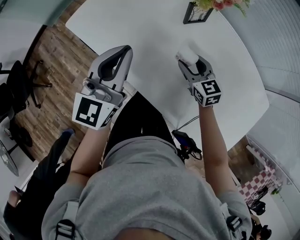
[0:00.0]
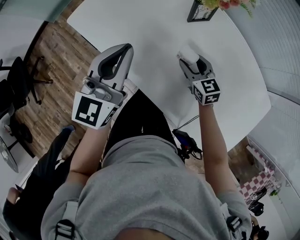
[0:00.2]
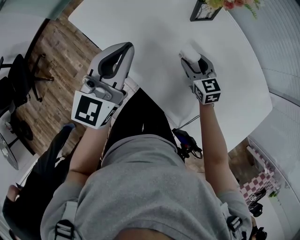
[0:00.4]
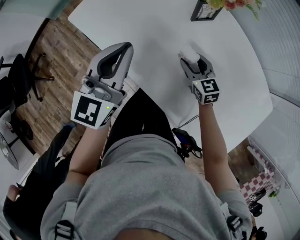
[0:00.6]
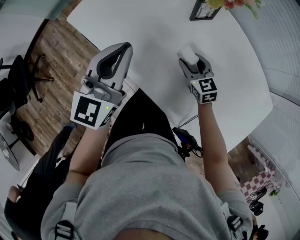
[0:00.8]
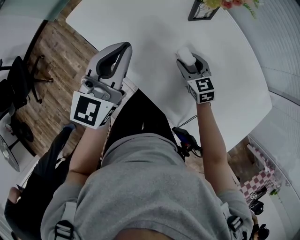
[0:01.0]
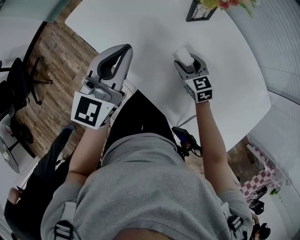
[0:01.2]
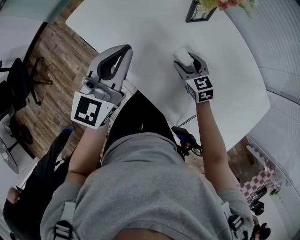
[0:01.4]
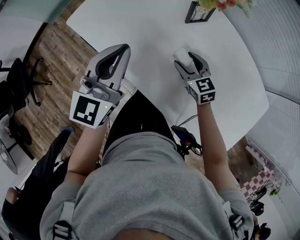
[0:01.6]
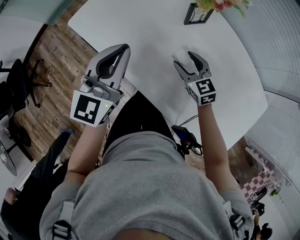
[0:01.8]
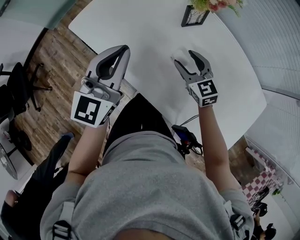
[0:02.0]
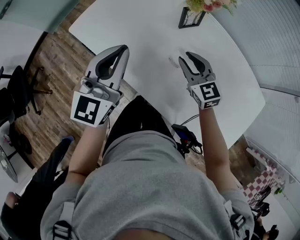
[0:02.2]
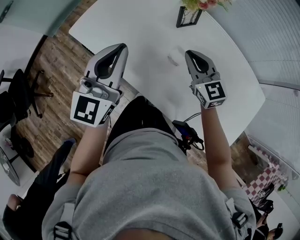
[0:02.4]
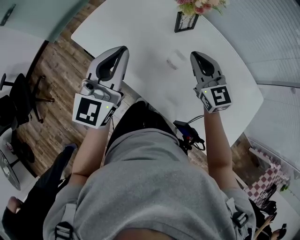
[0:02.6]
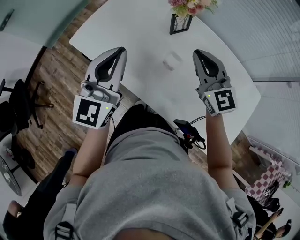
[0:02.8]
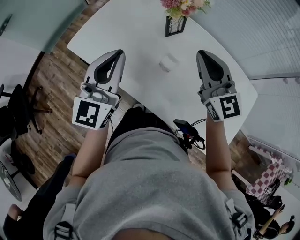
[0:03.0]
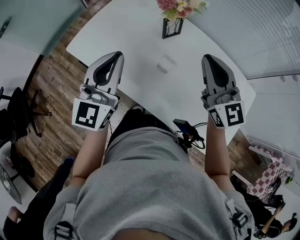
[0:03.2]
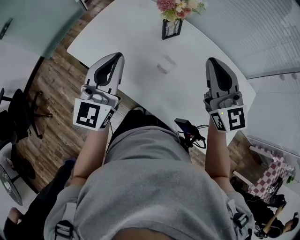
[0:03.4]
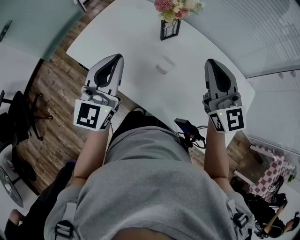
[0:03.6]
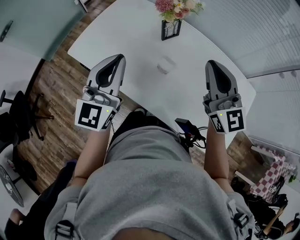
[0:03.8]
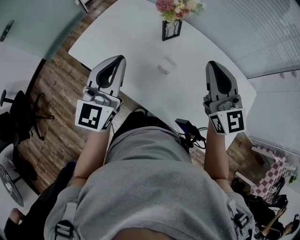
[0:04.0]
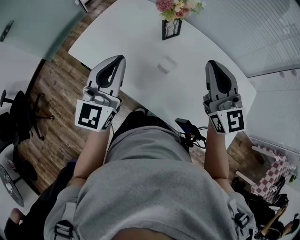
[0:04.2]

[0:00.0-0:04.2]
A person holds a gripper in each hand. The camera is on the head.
0:00.0 to 0:01.4: The grippers make only small movements.
0:01.4 to 0:02.8: The left gripper travels upward by some 10 cm, while the right gripper shifts roughly 25 cm upward, rotates some 30 degrees, and closes.
0:02.8 to 0:04.2: The right gripper moves upward and backward, roughly 10 cm.

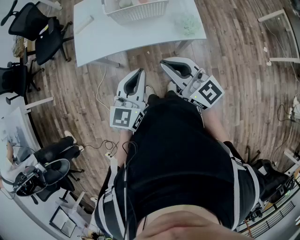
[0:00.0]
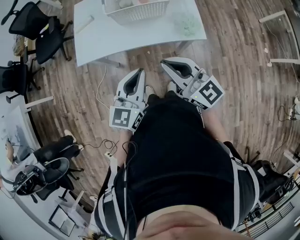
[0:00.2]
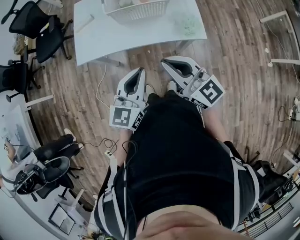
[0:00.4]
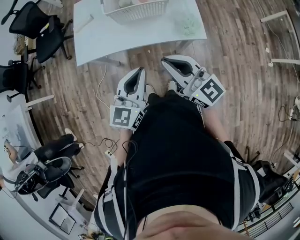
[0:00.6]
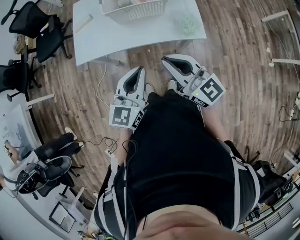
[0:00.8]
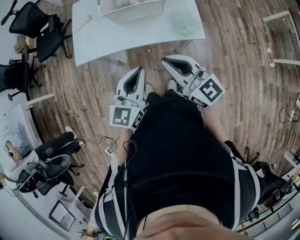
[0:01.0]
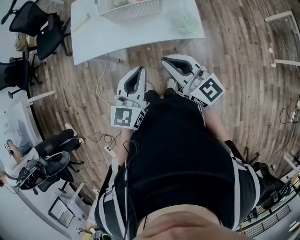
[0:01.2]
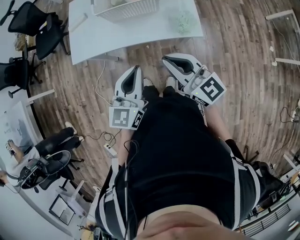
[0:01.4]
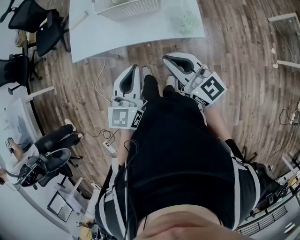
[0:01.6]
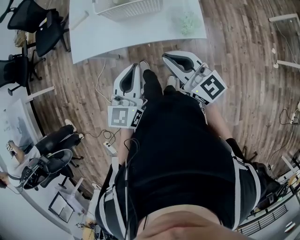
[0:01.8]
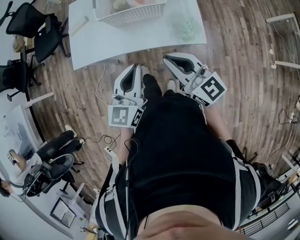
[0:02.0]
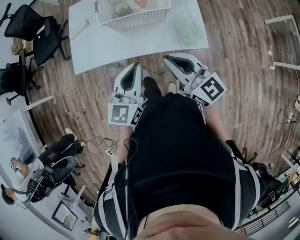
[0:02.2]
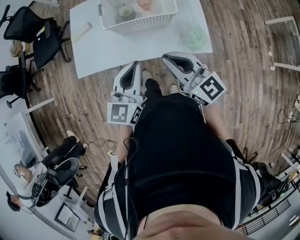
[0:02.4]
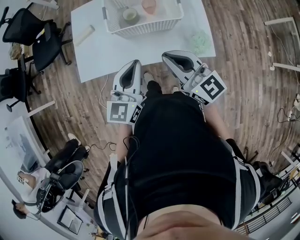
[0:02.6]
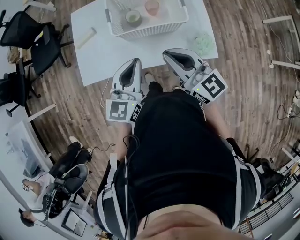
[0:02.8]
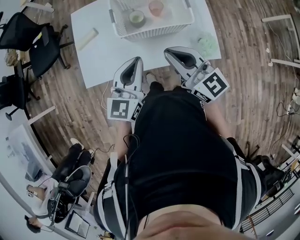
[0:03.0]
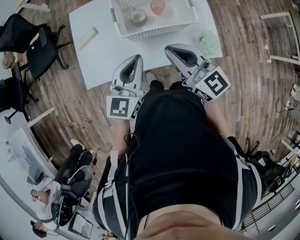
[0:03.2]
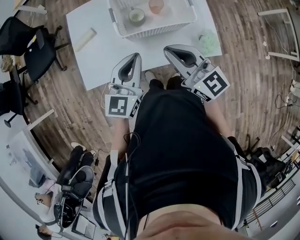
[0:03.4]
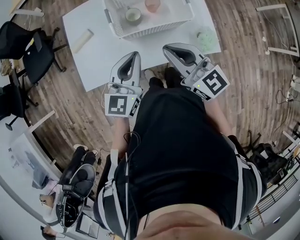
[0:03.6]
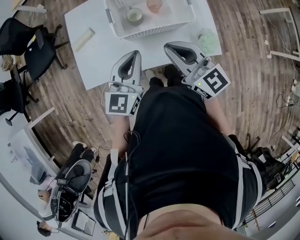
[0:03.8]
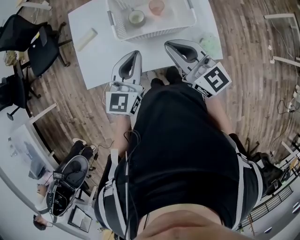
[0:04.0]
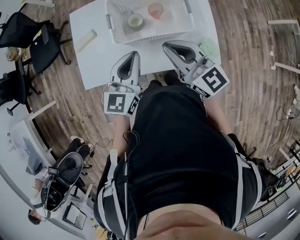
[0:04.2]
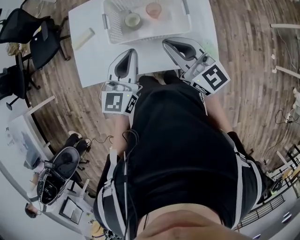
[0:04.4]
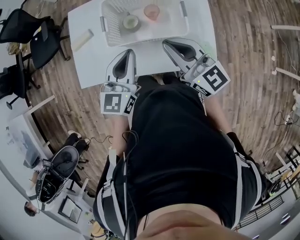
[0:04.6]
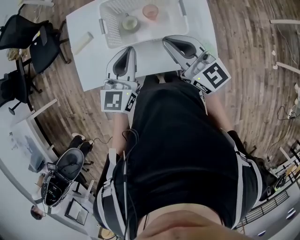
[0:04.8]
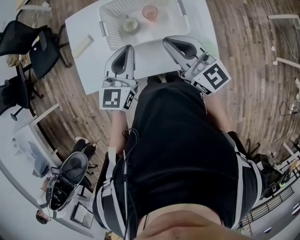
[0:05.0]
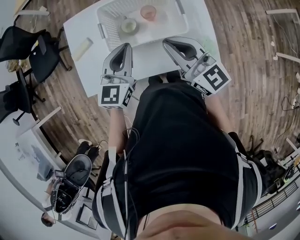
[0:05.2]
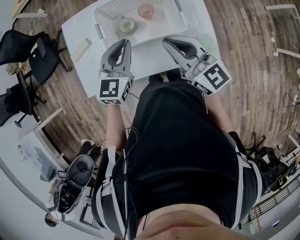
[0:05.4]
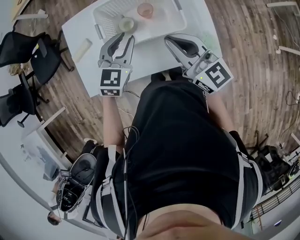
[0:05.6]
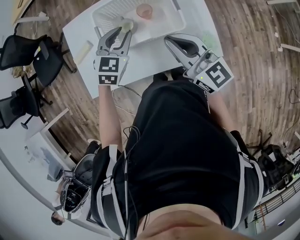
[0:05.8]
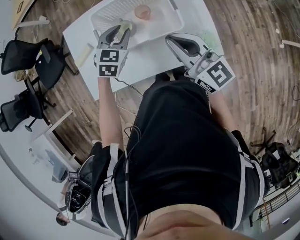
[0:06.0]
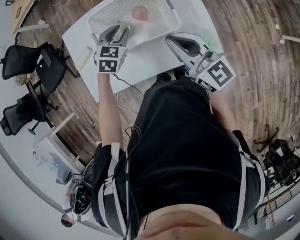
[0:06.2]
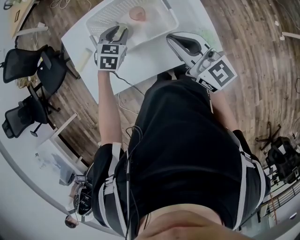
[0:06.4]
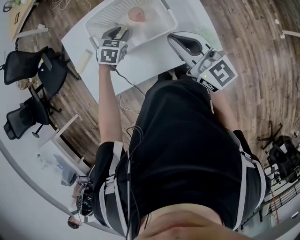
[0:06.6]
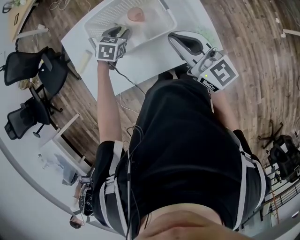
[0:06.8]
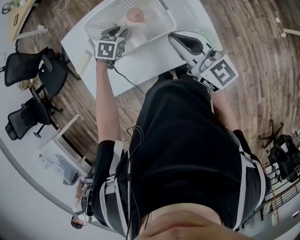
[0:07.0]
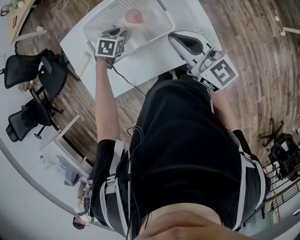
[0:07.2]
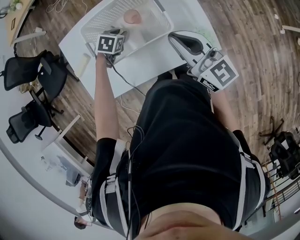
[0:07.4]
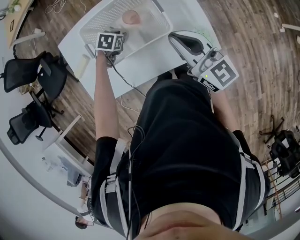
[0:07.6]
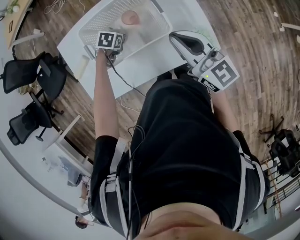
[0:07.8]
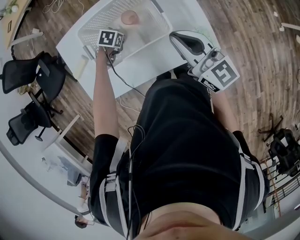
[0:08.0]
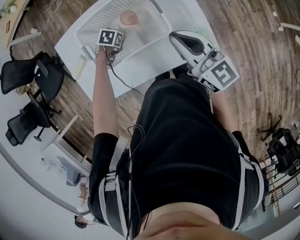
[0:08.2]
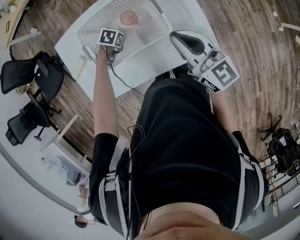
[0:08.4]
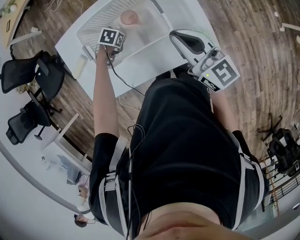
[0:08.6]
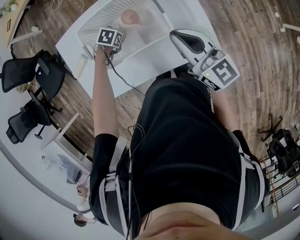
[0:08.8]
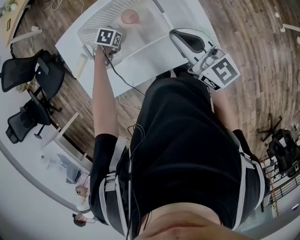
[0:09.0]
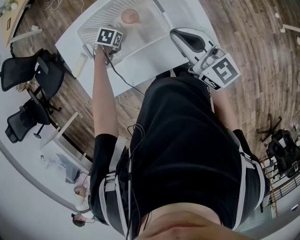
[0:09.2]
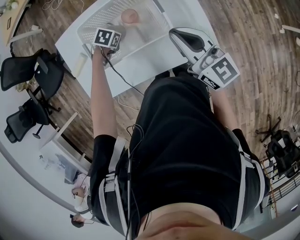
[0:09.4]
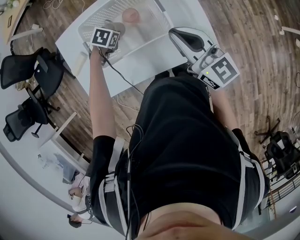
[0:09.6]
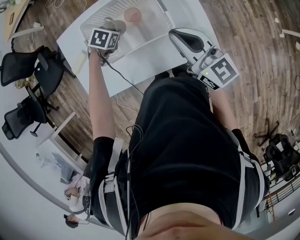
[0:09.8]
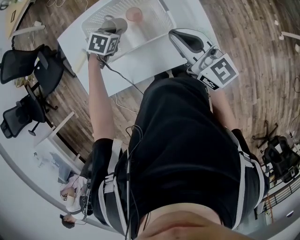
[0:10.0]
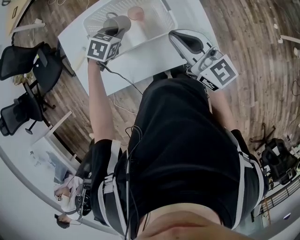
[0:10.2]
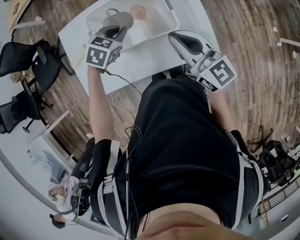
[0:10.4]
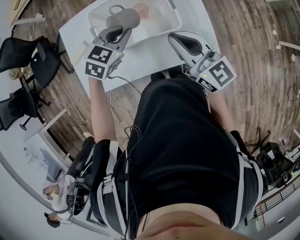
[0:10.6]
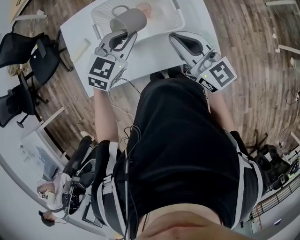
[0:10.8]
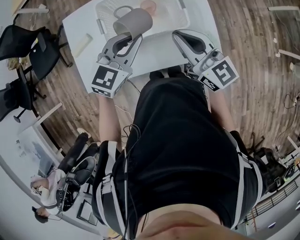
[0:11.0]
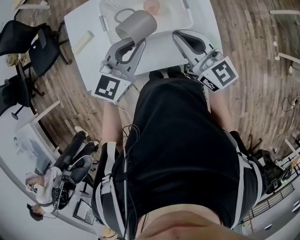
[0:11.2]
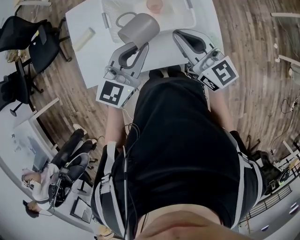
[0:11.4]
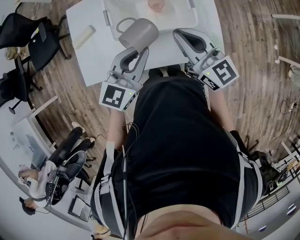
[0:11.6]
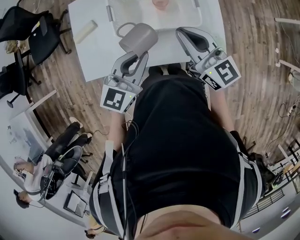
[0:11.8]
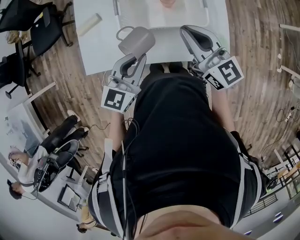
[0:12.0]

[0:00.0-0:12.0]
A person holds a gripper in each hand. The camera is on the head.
0:00.0 to 0:01.6: Both grippers move to the right, roughly 10 cm.
0:01.6 to 0:03.0: The two grippers go approximately 25 cm forward and to the left.
0:03.0 to 0:04.4: The two grippers go roughly 10 cm forward and to the right.
0:04.4 to 0:06.0: The left gripper heads forward and downward, covering roughly 15 cm, tips its fingers downward by about 30 degrees, and opens.
0:06.0 to 0:07.6: The right gripper goes some 5 cm to the right, while the left gripper moves downward, some 15 cm, and tilts its fingers some 30 degrees downward.
0:07.6 to 0:09.0: The left gripper closes its fingers.
0:09.0 to 0:10.4: The right gripper ends up some 5 cm from where it was, while the left gripper heads upward, covering some 20 cm, and swivels approximately 30 degrees.
0:10.4 to 0:12.0: The left gripper shifts about 20 cm backward and upward, and tilts its fingers some 40 degrees upward, while the right gripper is displaced to the left by approximately 10 cm.

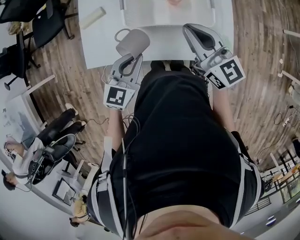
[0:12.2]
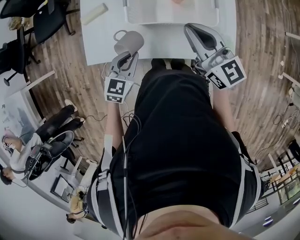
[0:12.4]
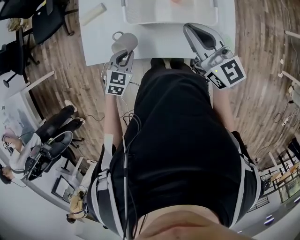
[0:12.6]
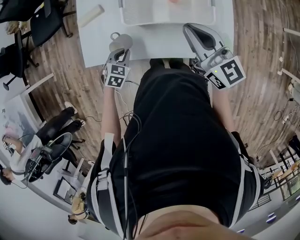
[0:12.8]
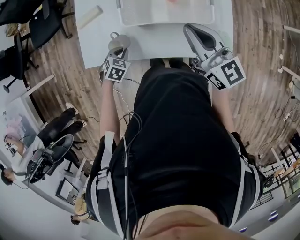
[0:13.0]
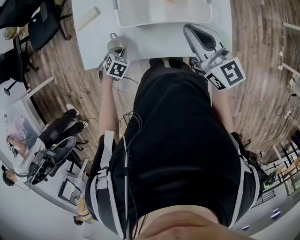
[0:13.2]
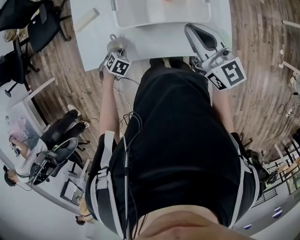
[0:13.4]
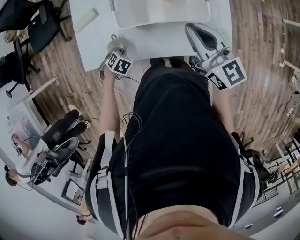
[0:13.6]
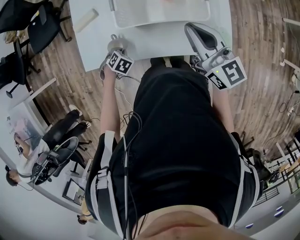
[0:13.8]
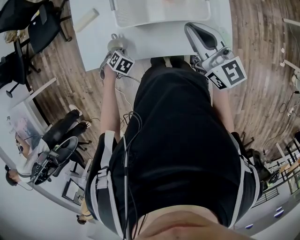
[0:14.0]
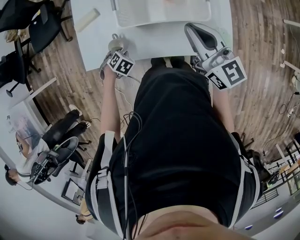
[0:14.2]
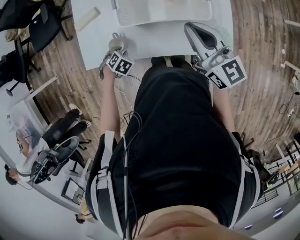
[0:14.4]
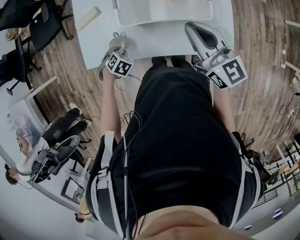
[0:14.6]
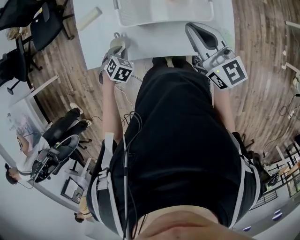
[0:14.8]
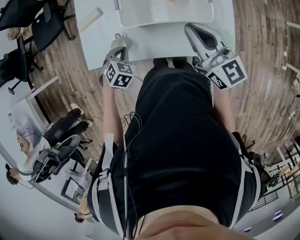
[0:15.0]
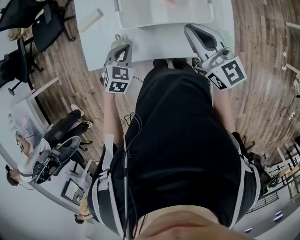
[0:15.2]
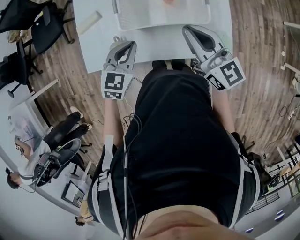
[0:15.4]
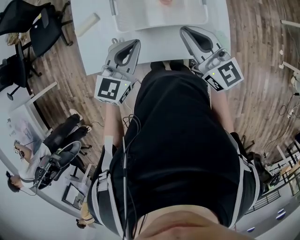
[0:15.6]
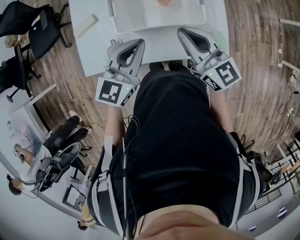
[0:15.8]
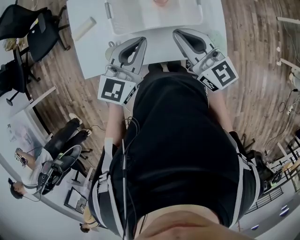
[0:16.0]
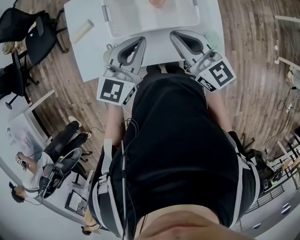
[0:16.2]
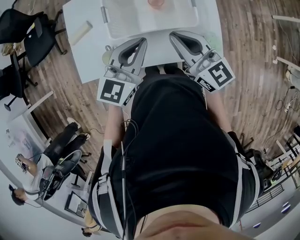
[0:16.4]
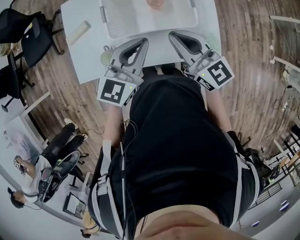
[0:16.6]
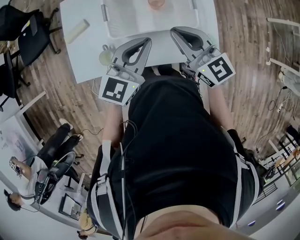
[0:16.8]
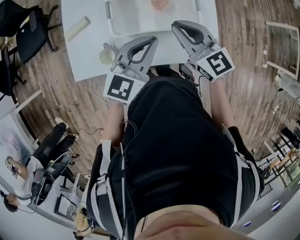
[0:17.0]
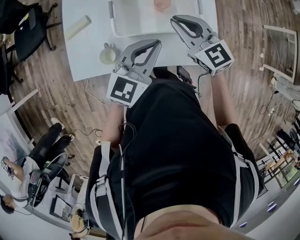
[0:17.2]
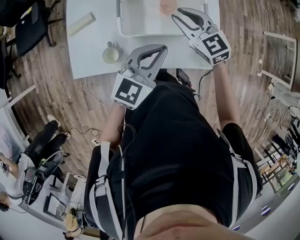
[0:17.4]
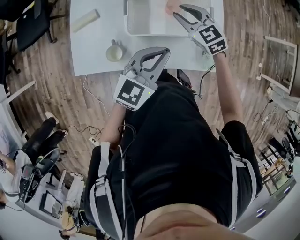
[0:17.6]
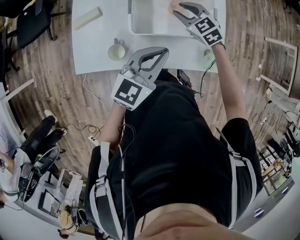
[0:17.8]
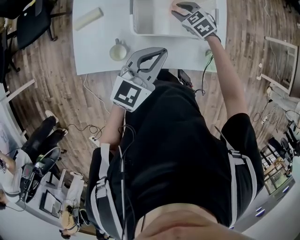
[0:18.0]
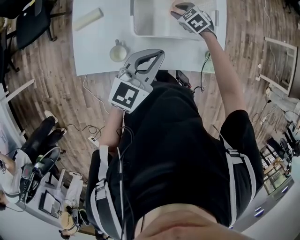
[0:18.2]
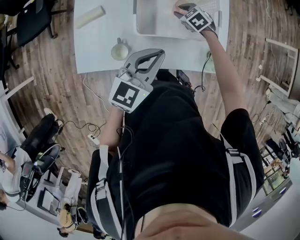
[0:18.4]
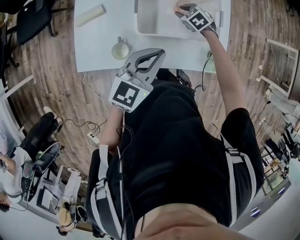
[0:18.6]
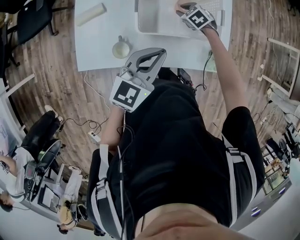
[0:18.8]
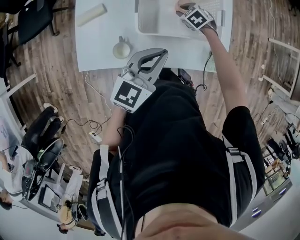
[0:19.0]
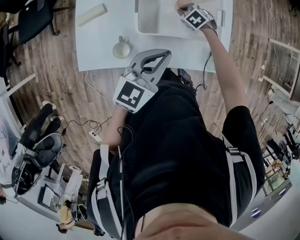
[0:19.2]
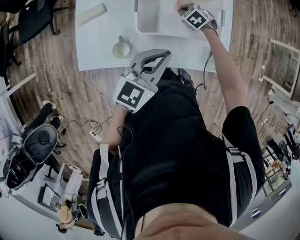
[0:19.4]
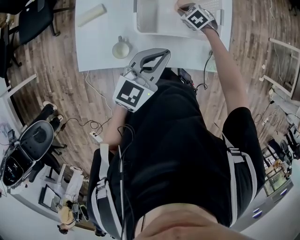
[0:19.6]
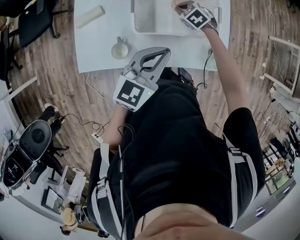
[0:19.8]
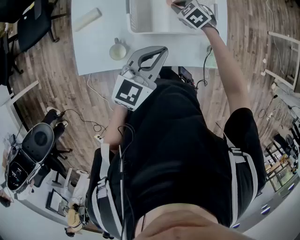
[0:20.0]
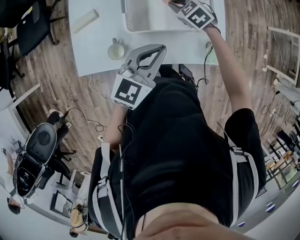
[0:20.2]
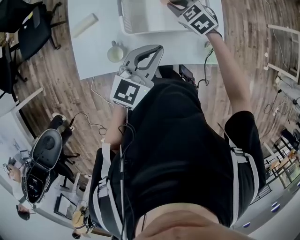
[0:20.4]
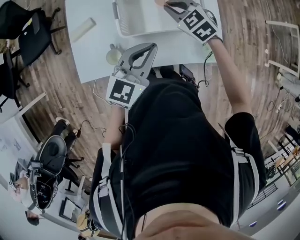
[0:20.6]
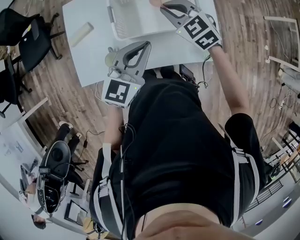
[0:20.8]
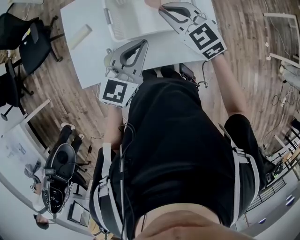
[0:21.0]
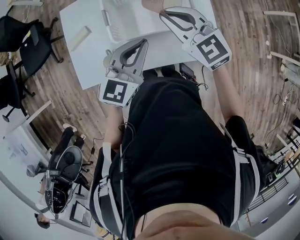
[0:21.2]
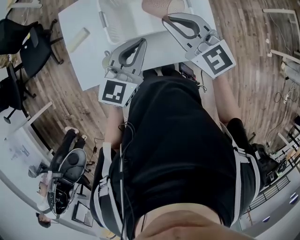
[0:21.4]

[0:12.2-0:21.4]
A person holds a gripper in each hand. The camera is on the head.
0:12.2 to 0:13.8: The left gripper shifts about 25 cm downward, and tips its fingers downward by approximately 60 degrees.
0:13.8 to 0:15.2: The left gripper shifts approximately 15 cm upward, and swivels roughly 30 degrees.
0:15.2 to 0:16.8: The left gripper is displaced upward and to the right by approximately 20 cm, and points its fingers approximately 40 degrees further upward.
0:16.8 to 0:18.4: The left gripper heads to the left, covering approximately 5 cm; the right gripper goes about 30 cm downward and forward, angles its fingers downward, by some 50 degrees, and opens its fingers.
0:18.4 to 0:19.8: The right gripper closes up.
0:19.8 to 0:21.4: The right gripper goes about 30 cm upward and backward, and tips its fingers upward by roughly 50 degrees.
